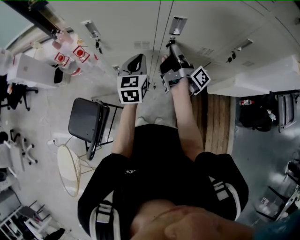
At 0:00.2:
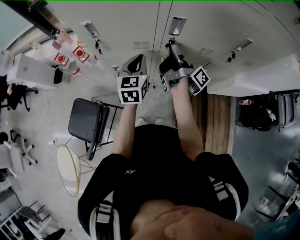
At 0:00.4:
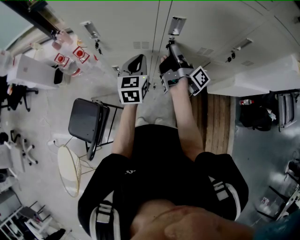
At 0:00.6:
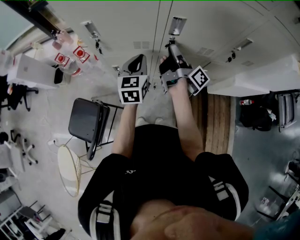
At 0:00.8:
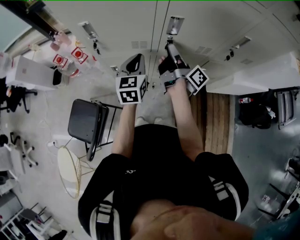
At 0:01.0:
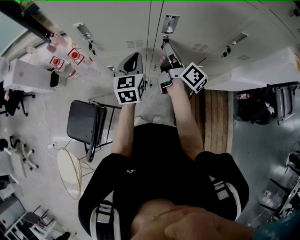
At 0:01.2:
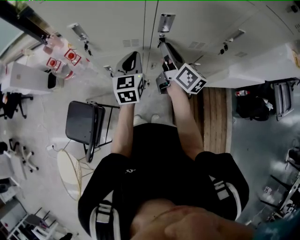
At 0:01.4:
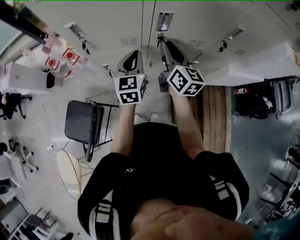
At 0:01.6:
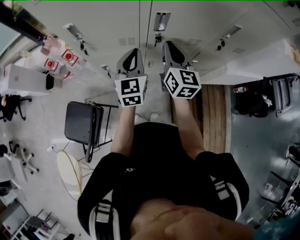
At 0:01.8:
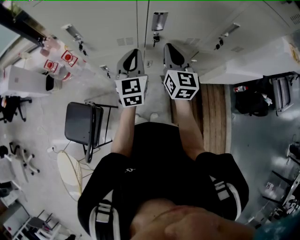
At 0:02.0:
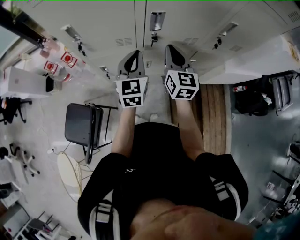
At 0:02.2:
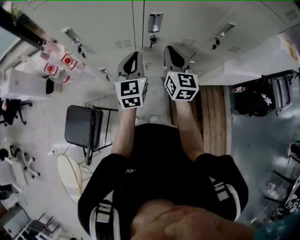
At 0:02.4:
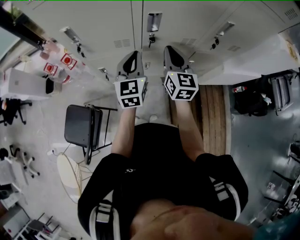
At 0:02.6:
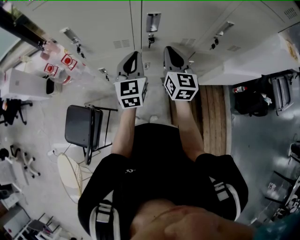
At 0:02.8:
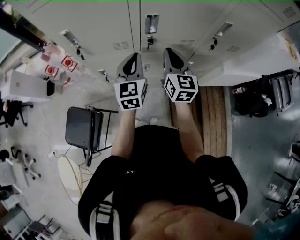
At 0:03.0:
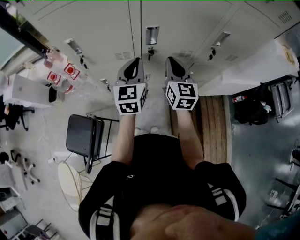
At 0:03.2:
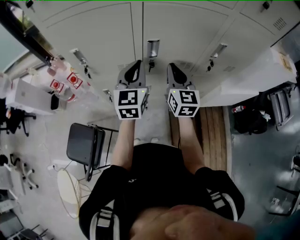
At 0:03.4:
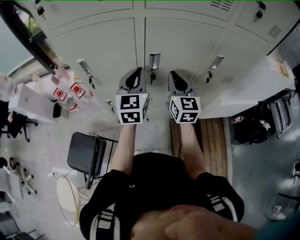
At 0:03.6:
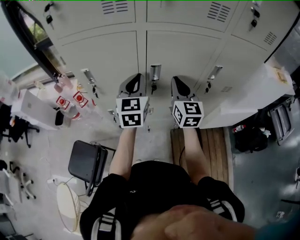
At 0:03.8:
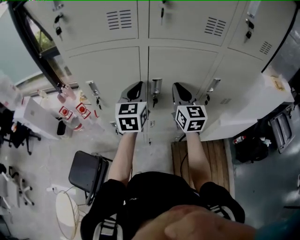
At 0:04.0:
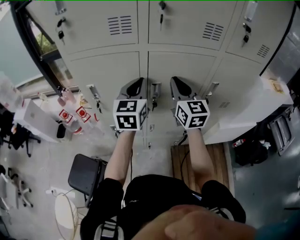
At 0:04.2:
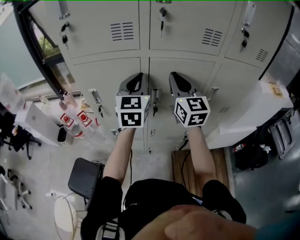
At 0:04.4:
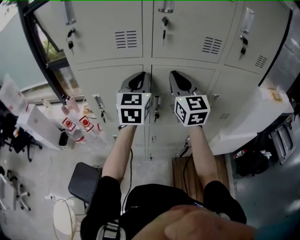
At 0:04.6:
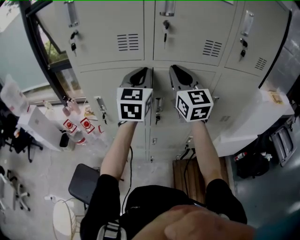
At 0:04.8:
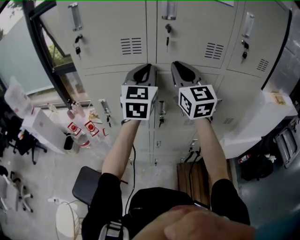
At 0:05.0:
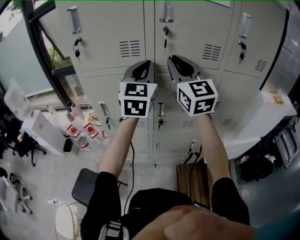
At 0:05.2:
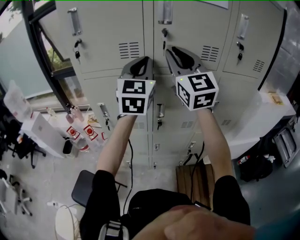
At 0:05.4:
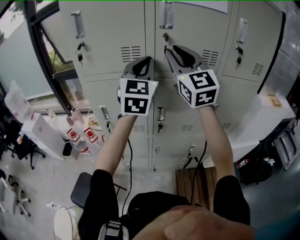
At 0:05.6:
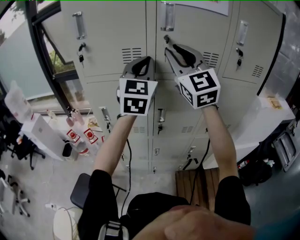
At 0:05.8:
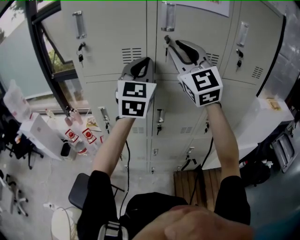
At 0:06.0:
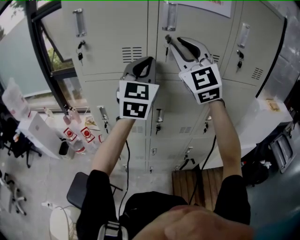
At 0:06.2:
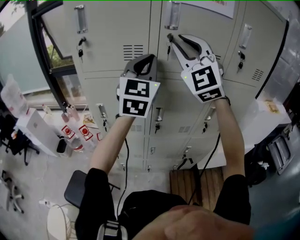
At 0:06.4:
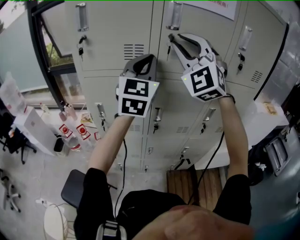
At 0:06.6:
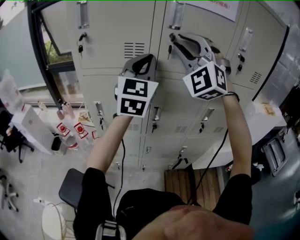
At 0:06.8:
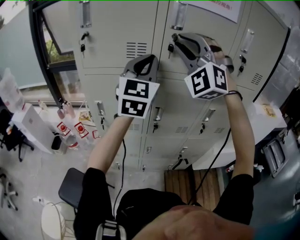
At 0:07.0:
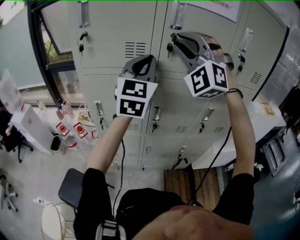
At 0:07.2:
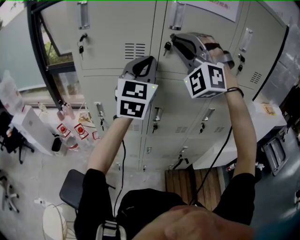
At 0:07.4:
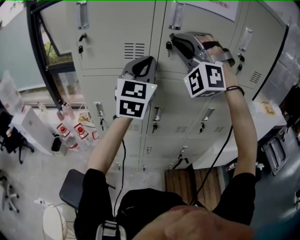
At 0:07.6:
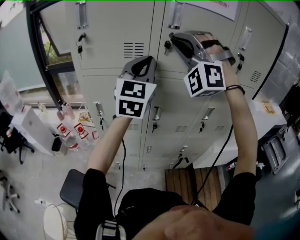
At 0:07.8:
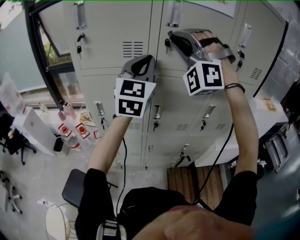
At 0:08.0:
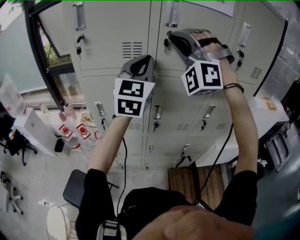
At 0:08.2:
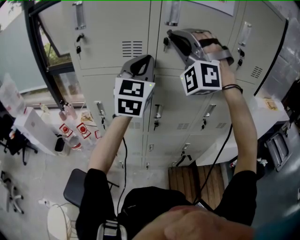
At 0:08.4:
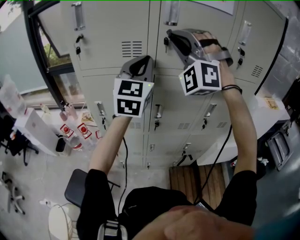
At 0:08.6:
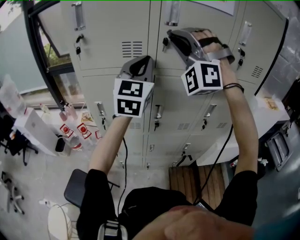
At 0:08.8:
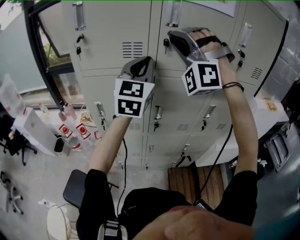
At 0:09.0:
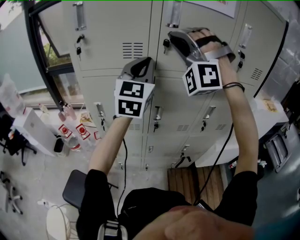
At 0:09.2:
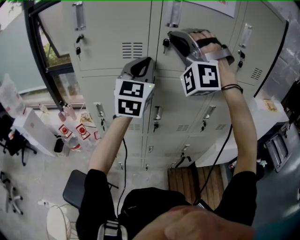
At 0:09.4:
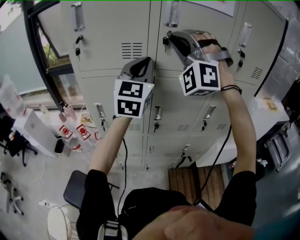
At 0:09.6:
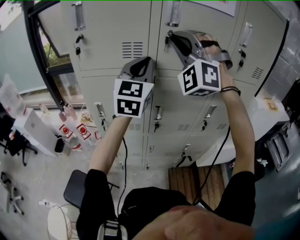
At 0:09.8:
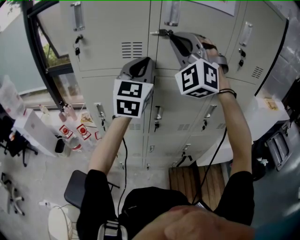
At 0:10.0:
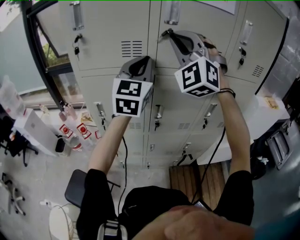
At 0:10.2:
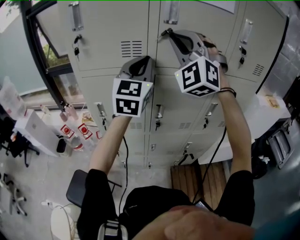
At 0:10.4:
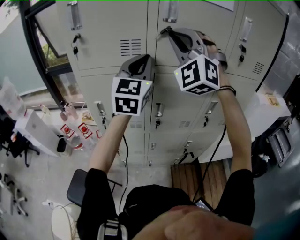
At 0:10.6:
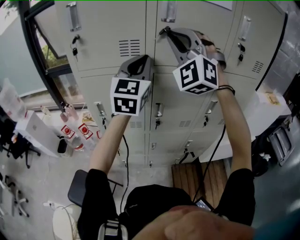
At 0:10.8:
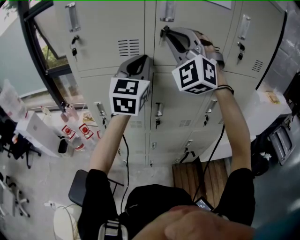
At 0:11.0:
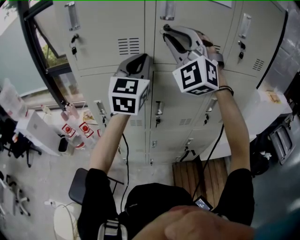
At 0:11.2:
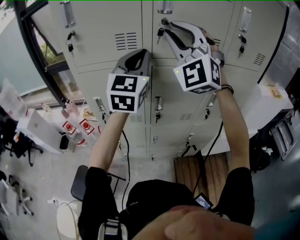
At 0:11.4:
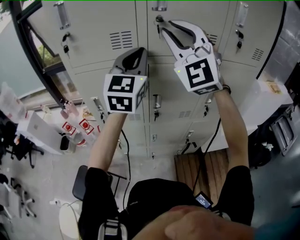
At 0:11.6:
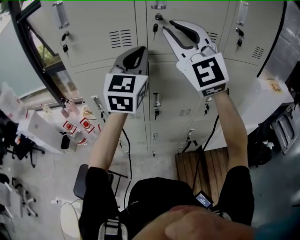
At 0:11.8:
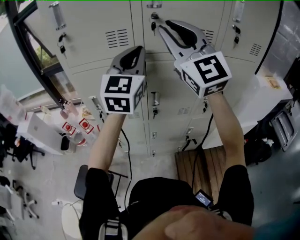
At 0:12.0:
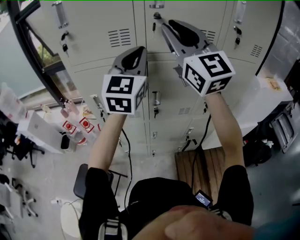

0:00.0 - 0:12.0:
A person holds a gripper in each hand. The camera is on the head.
0:00.0 - 0:01.6: The right gripper moves approximately 5 cm, and twists roughly 80 degrees counterclockwise, seen from behind.
0:01.6 - 0:03.0: There are only small adjustments of the grippers.
0:03.0 - 0:04.4: The two grippers go some 25 cm upward. The right gripper changes its angle by roughly 20 degrees.
0:04.4 - 0:06.0: The grippers both shift upward by roughly 15 cm. The right gripper changes its angle by some 40 degrees.
0:06.0 - 0:07.6: The right gripper rolls counterclockwise, seen from behind, by about 60 degrees.
0:07.6 - 0:09.0: There are only small adjustments of the grippers.
0:09.0 - 0:10.4: The right gripper changes its angle by about 30 degrees.
0:10.4 - 0:12.0: The right gripper ends up some 5 cm from where it was, and rotates around the line of its fingers by roughly 60 degrees, clockwise from behind.

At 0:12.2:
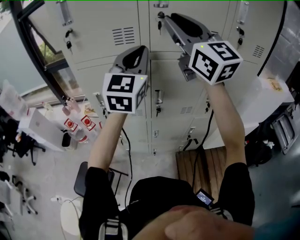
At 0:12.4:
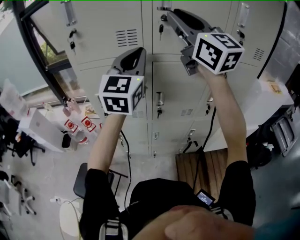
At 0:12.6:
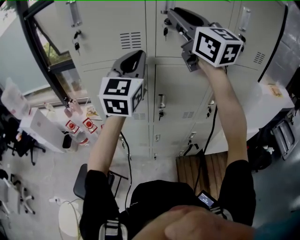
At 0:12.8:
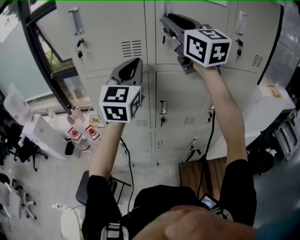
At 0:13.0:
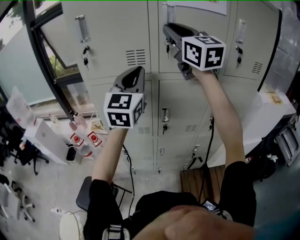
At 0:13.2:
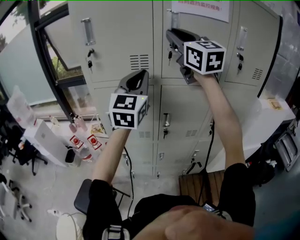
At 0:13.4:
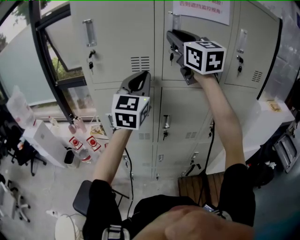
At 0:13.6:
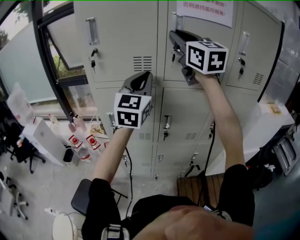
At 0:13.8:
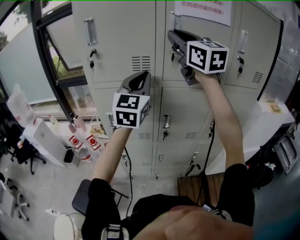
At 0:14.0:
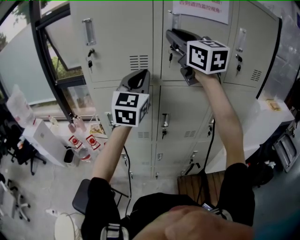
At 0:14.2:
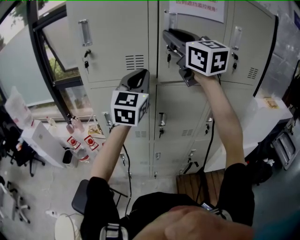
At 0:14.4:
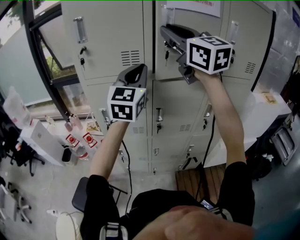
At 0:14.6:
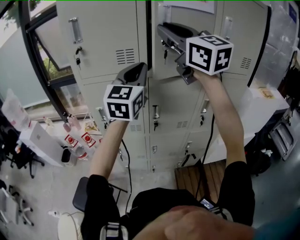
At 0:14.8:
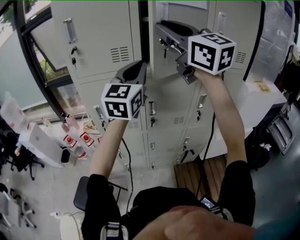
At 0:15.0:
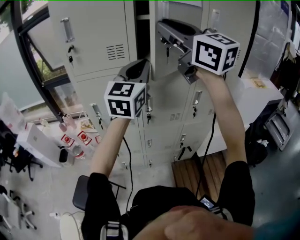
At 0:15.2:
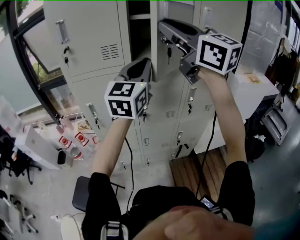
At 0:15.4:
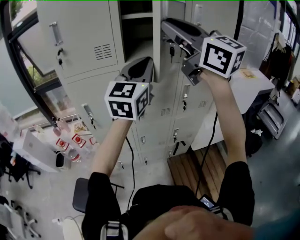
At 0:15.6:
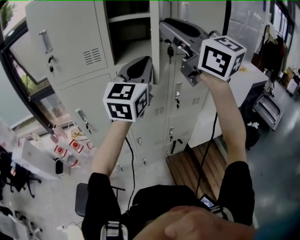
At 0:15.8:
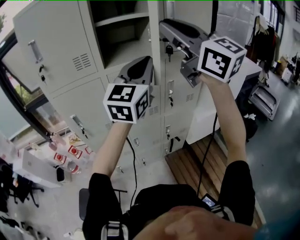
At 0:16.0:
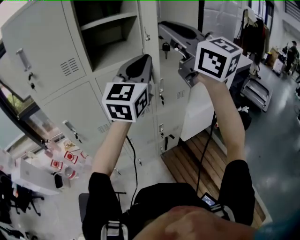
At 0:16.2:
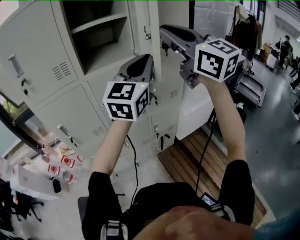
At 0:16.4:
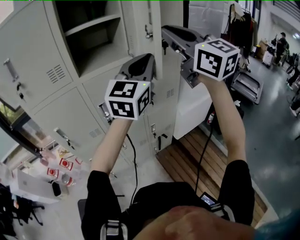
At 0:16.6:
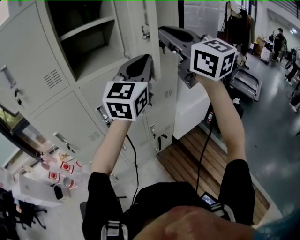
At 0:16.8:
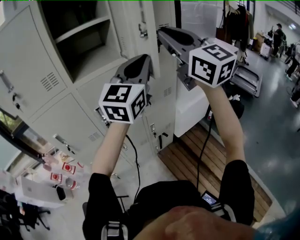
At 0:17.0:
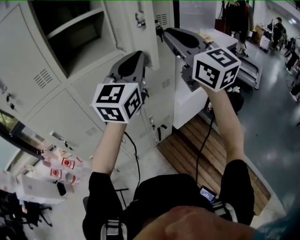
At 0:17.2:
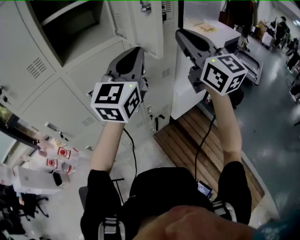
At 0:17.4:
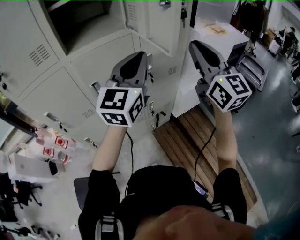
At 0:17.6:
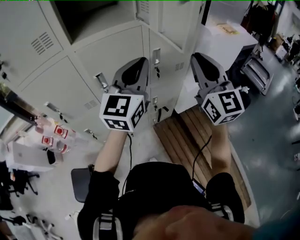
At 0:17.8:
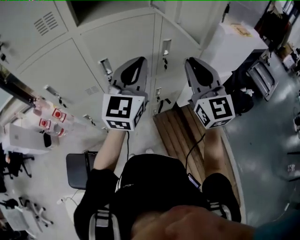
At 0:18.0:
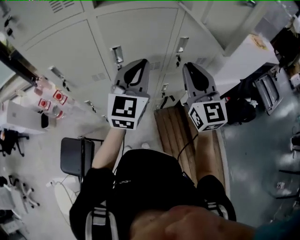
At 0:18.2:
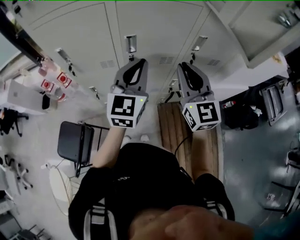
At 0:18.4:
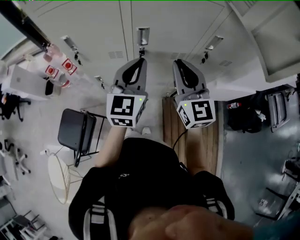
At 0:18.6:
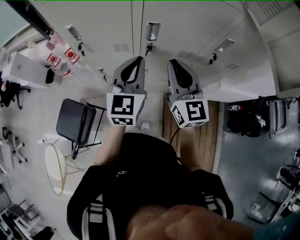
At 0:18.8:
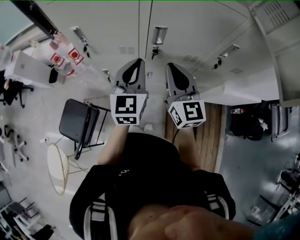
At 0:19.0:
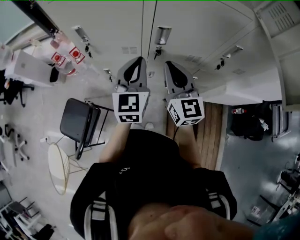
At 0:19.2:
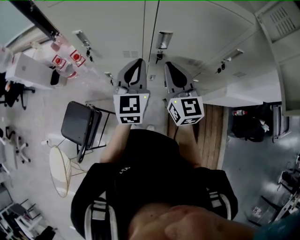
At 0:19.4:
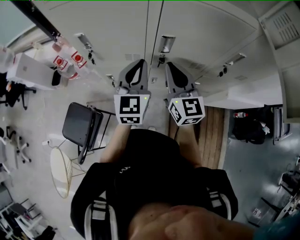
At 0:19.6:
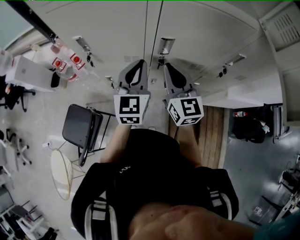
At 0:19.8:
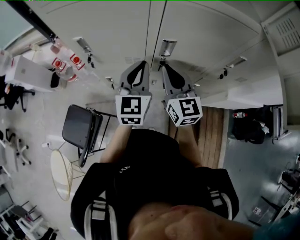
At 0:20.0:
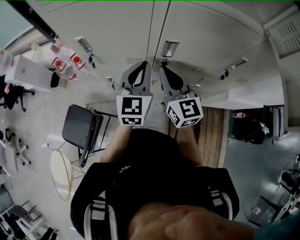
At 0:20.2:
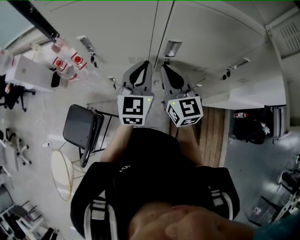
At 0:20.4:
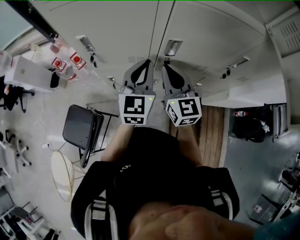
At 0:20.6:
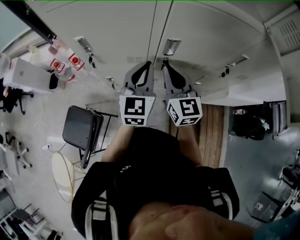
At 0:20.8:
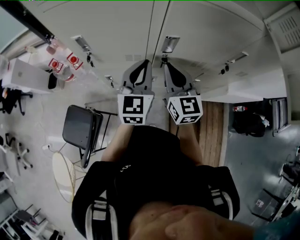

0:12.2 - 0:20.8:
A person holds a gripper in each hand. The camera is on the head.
0:12.2 - 0:13.6: The right gripper moves forward and upward, roughly 10 cm.
0:13.6 - 0:15.0: The left gripper is displaced to the right and backward by roughly 10 cm, while the right gripper goes about 15 cm backward.
0:15.0 - 0:16.6: The left gripper shifts by about 25 cm, and swivels some 30 degrees, while the right gripper ends up roughly 25 cm from where it was, and changes its angle by some 20 degrees.
0:16.6 - 0:18.0: The right gripper shifts roughly 30 cm downward. The left gripper heads downward and to the left, covering about 25 cm, and rotates approximately 30 degrees.
0:18.0 - 0:19.4: The grippers both shift to the left, downward and forward by some 25 cm. The right gripper rotates about 20 degrees. The left gripper rotates roughly 30 degrees.
0:19.4 - 0:20.8: The grippers stay close to where they were, moving slightly.

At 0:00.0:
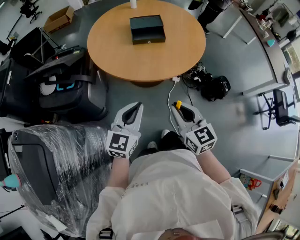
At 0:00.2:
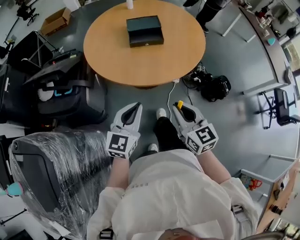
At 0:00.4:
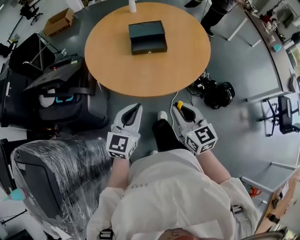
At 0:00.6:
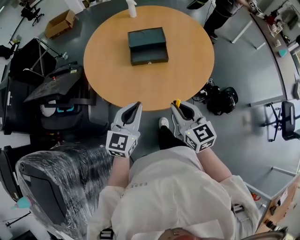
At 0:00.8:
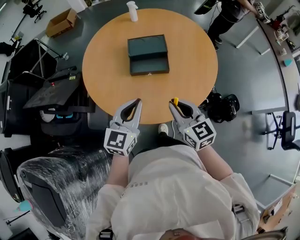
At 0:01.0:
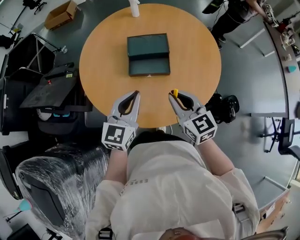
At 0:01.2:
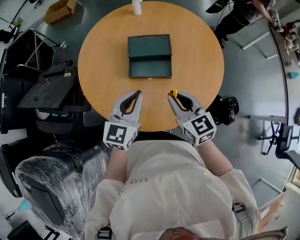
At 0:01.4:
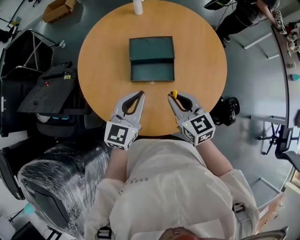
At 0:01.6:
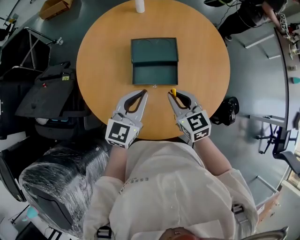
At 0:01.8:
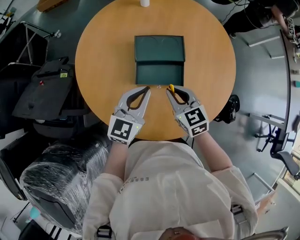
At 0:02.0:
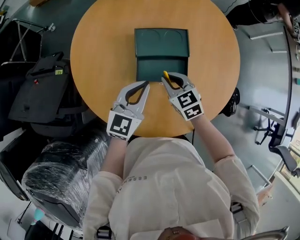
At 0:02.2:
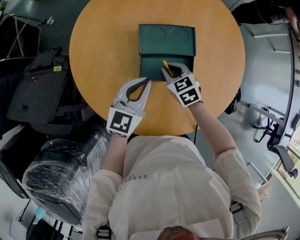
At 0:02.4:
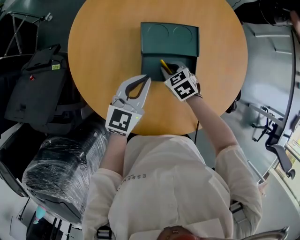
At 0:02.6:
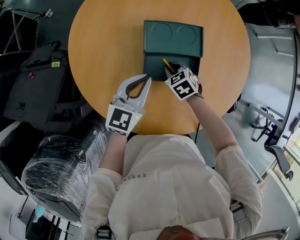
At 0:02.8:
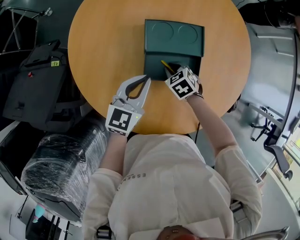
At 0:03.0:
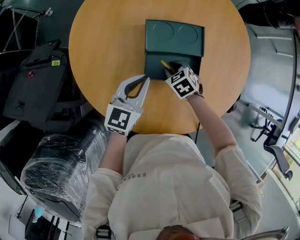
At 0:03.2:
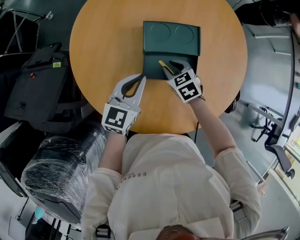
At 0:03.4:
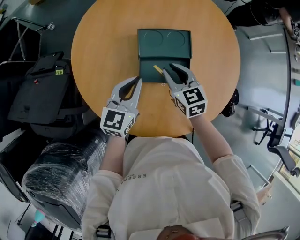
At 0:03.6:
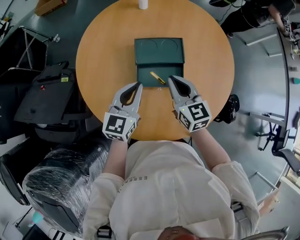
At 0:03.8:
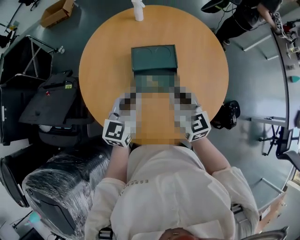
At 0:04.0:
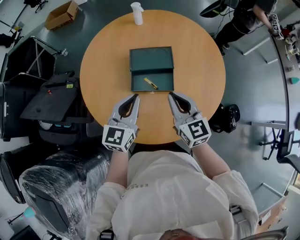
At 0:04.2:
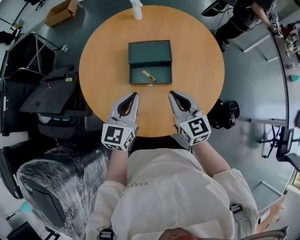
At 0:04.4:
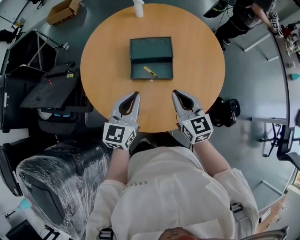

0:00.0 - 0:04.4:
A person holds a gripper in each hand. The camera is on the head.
0:00.0 - 0:01.4: The two grippers travel together, forward, some 40 cm.
0:01.4 - 0:03.0: The left gripper goes approximately 15 cm forward, downward and to the left. Meanwhile the right gripper moves downward and forward, some 30 cm, and tilts its fingers roughly 40 degrees downward.
0:03.0 - 0:04.4: The right gripper is displaced upward and backward by roughly 30 cm, tips its fingers upward by roughly 50 degrees, and closes up, while the left gripper travels backward and upward by approximately 20 cm.
